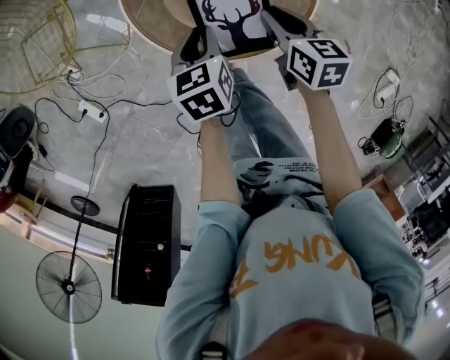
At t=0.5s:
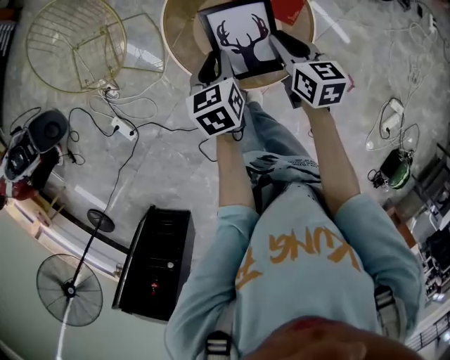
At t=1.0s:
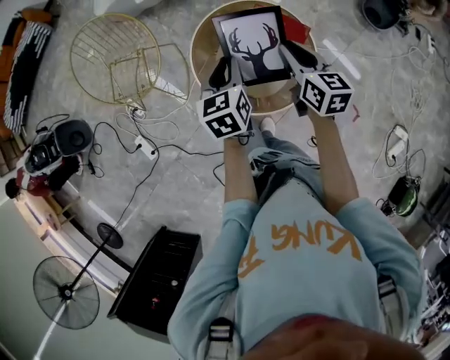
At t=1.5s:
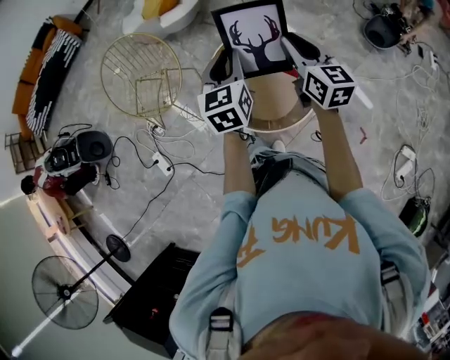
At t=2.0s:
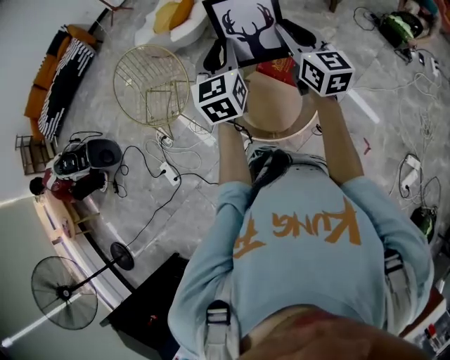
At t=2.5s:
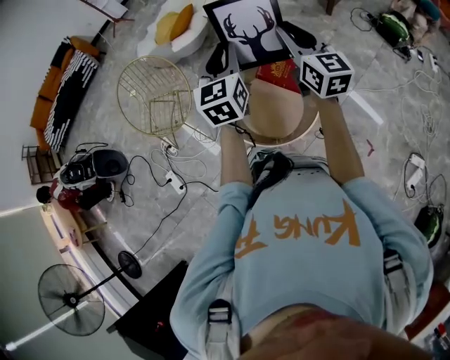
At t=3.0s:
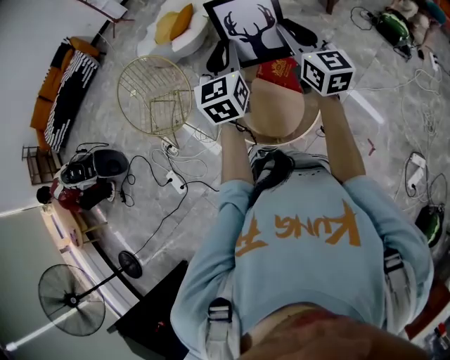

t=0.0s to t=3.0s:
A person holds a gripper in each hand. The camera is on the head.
t=0.0s to t=1.5s: Both grippers travel together upward, some 40 cm. The left gripper points its fingers about 30 degrees further upward; the right gripper tilts its fingers about 30 degrees upward.
t=1.5s to t=3.0s: Both grippers move upward, roughly 10 cm.

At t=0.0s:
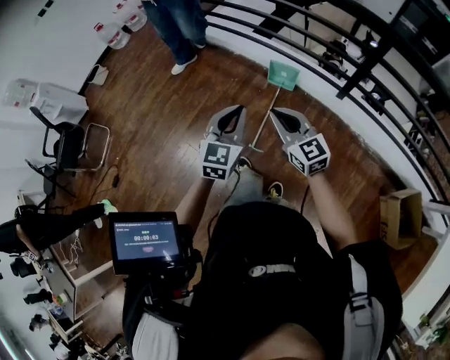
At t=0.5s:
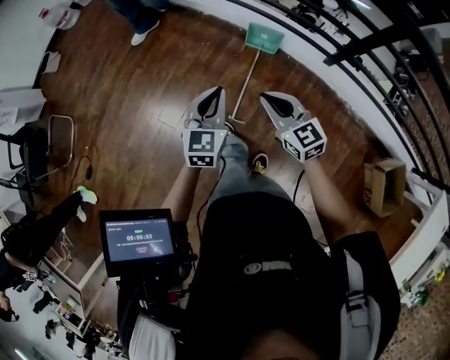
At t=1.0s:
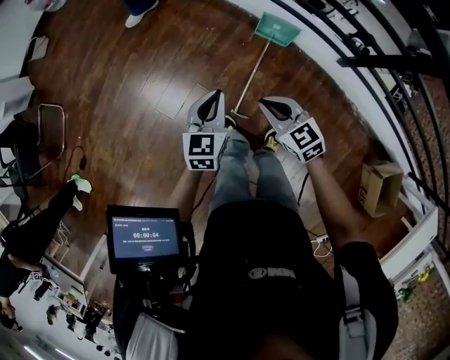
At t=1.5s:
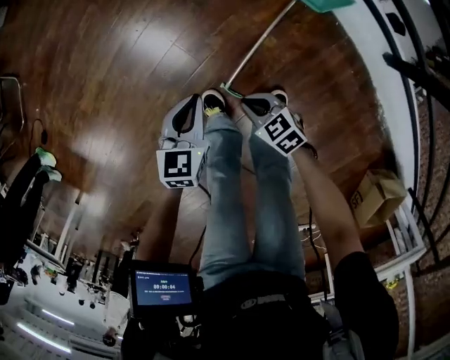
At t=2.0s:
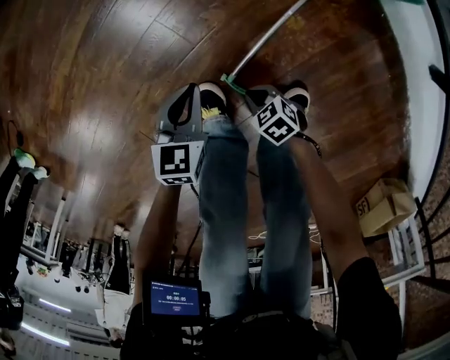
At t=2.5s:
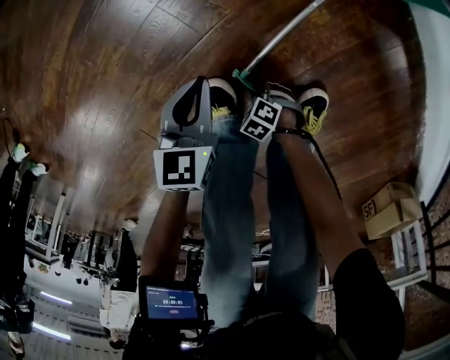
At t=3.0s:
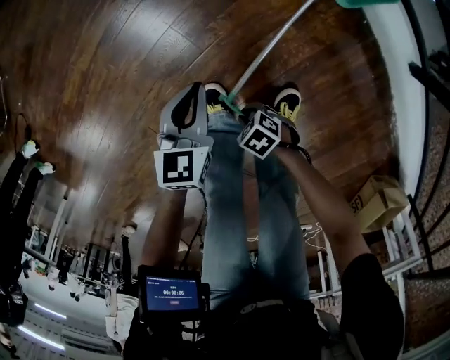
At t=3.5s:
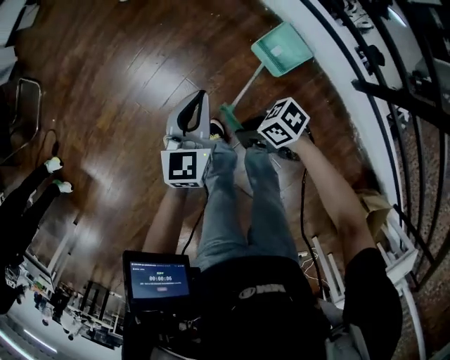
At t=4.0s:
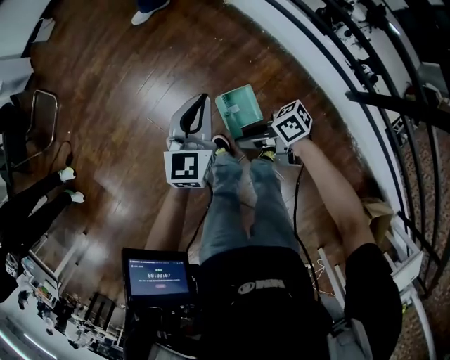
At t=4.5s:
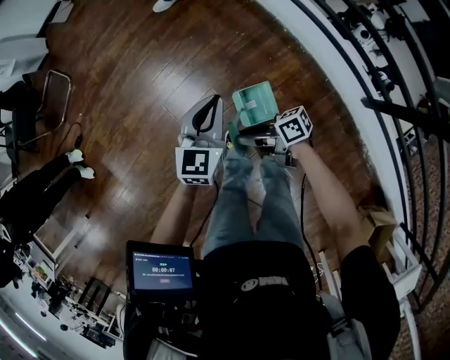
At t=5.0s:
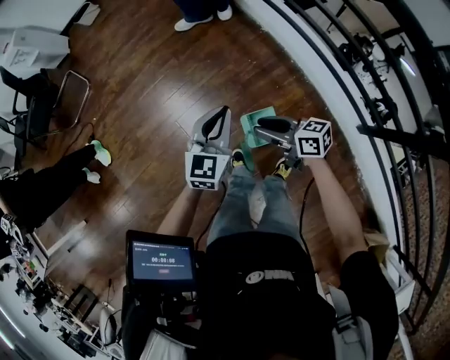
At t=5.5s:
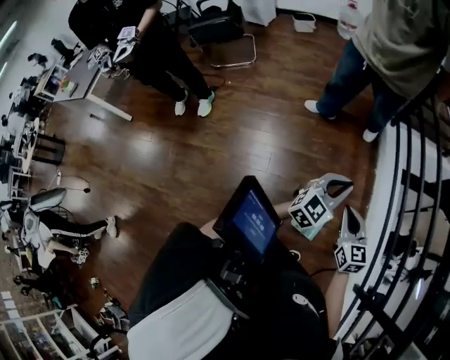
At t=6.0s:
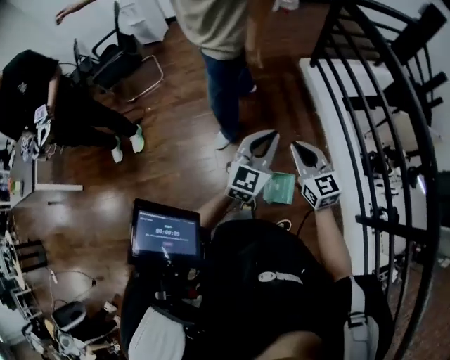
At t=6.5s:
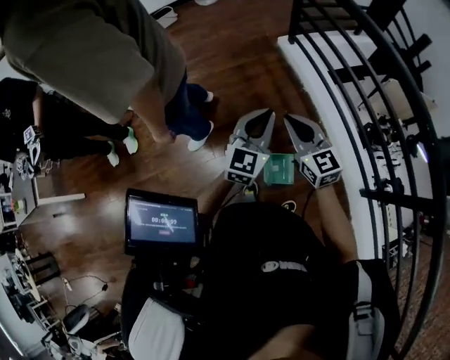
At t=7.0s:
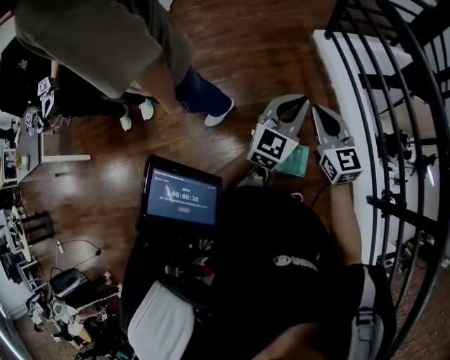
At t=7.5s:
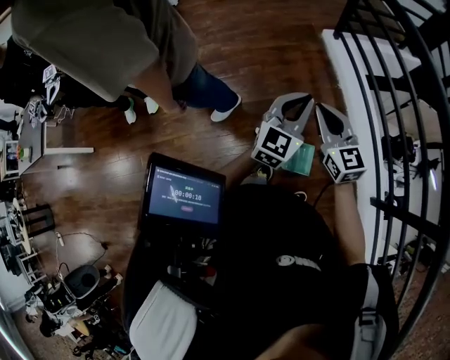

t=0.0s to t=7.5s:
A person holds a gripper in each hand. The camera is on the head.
t=0.0s to t=2.0s: Both grippers move downward, roughly 70 cm. The right gripper tips its fingers downward by about 50 degrees. Meanwhile the left gripper points its fingers approximately 30 degrees further downward.
t=2.0s to t=4.0s: Both grippers travel together upward, approximately 50 cm. The right gripper angles its fingers upward, by some 50 degrees. The left gripper changes its angle by some 30 degrees.
t=4.0s to t=5.5s: The right gripper travels upward and forward by some 20 cm, and rolls counterclockwise, seen from behind, by about 60 degrees; the left gripper moves upward, approximately 15 cm.
t=5.5s to t=7.5s: The left gripper goes left and right, about 10 cm each way, reversing 2 times; the right gripper swings left and right, some 10 cm each way, with 2 reversals.

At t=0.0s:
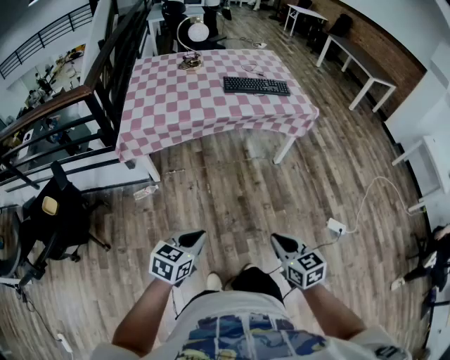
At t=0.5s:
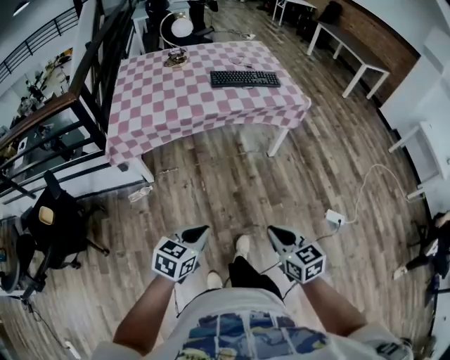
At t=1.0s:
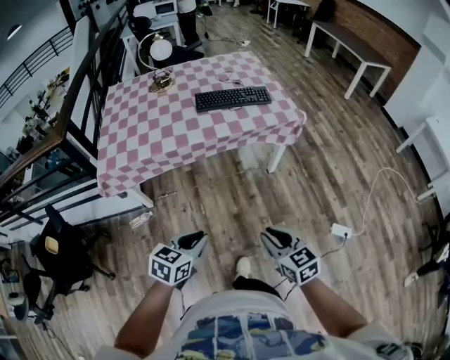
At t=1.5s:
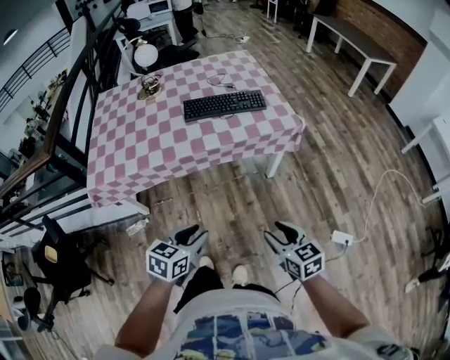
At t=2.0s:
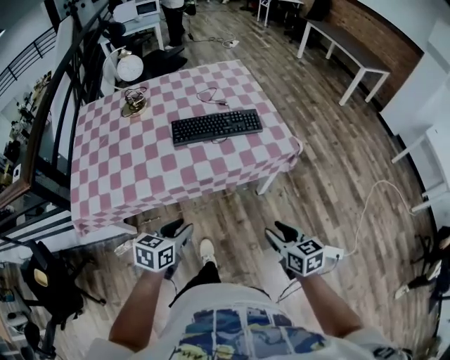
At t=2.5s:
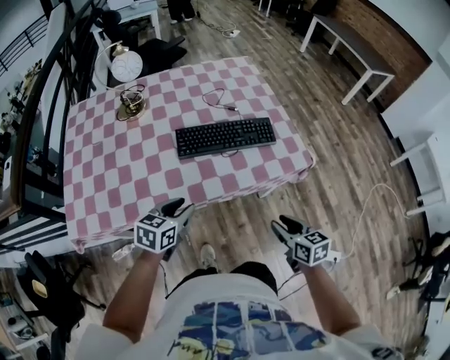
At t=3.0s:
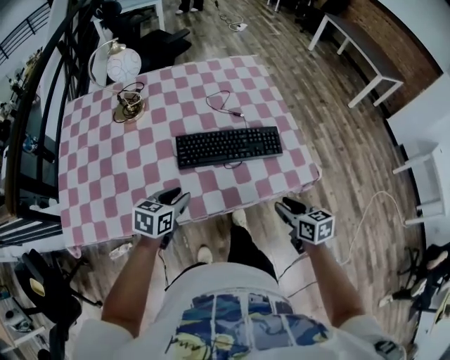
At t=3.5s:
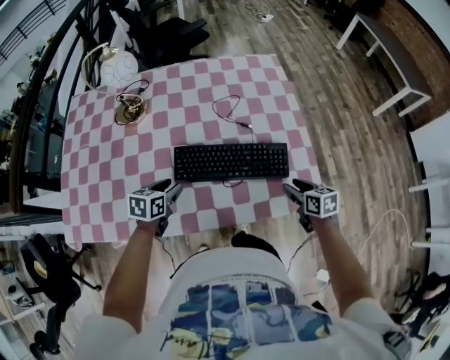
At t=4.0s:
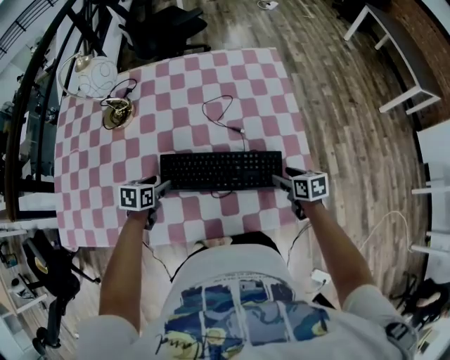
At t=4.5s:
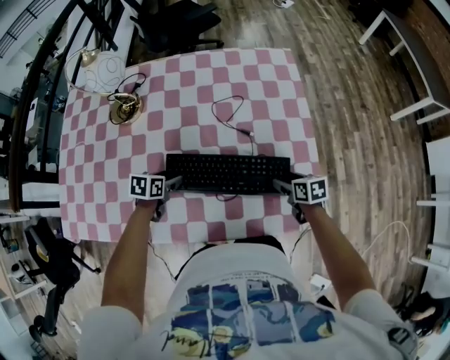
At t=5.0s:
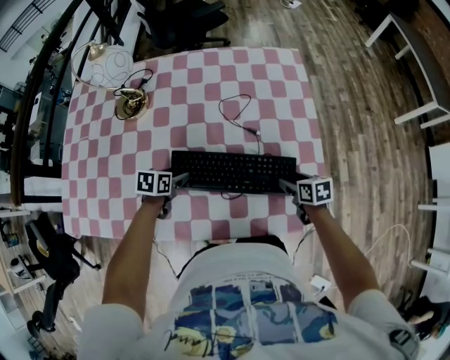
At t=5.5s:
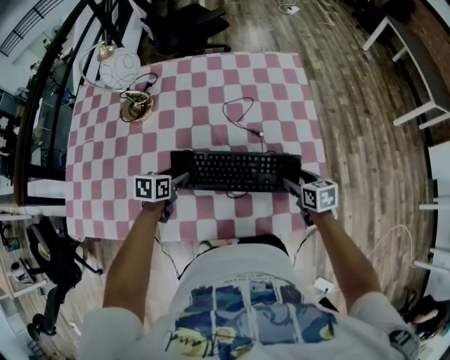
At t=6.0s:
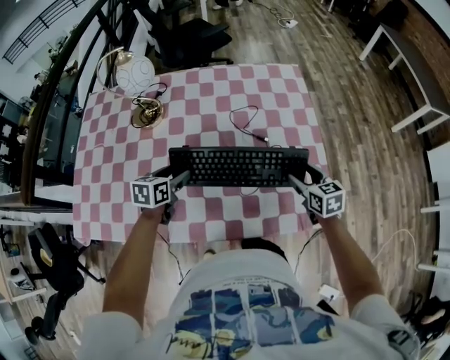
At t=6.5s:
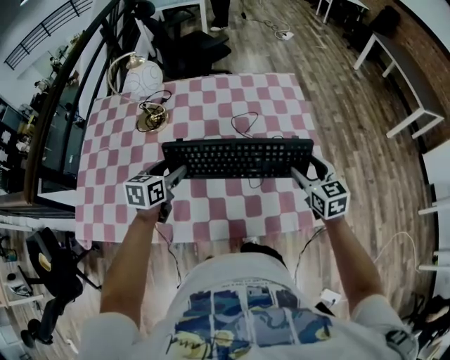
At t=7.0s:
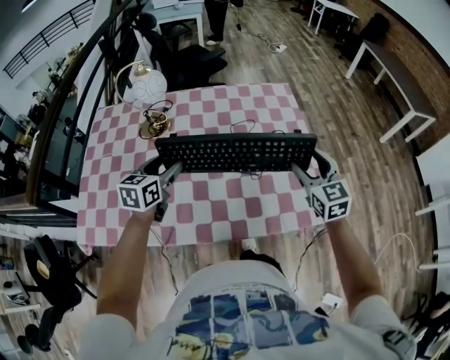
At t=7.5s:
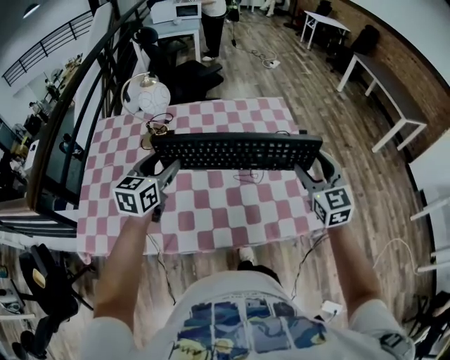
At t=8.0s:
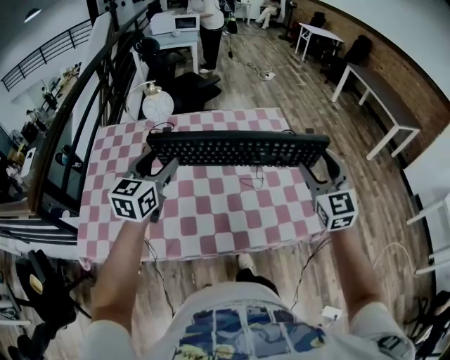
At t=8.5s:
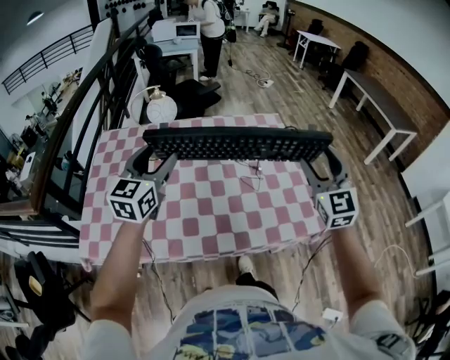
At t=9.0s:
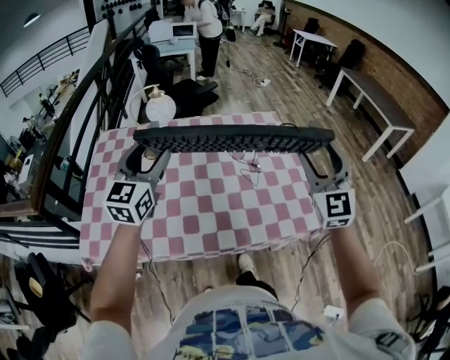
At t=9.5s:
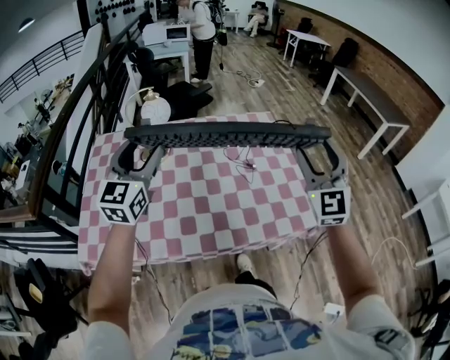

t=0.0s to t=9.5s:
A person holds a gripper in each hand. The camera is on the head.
t=0.0s to t=2.0s: Both grippers are carried forward, roughly 50 cm. The right gripper opens its fingers, while the left gripper opens up.
t=2.0s to t=4.0s: The pair of grippers is taken forward, approximately 50 cm. The left gripper swivels some 30 degrees, and opens up. Meanwhile the right gripper changes its angle by about 20 degrees, and opens its fingers.
t=4.0s to t=5.5s: The grippers move only a little.
t=5.5s to t=7.5s: The grippers both shift upward by about 30 cm. The left gripper tips its fingers upward by some 30 degrees. Meanwhile the right gripper points its fingers approximately 40 degrees further upward.
t=7.5s to t=9.5s: The grippers both shift upward and backward by roughly 15 cm. The left gripper changes its angle by about 30 degrees, while the right gripper turns by approximately 30 degrees.

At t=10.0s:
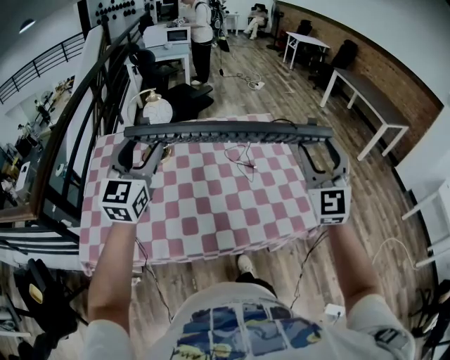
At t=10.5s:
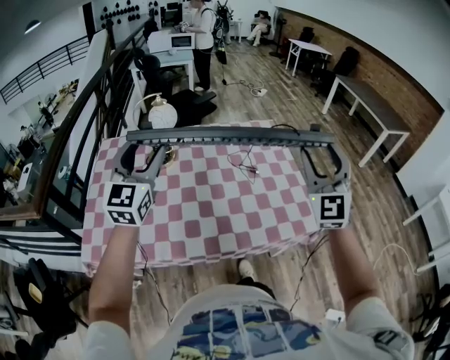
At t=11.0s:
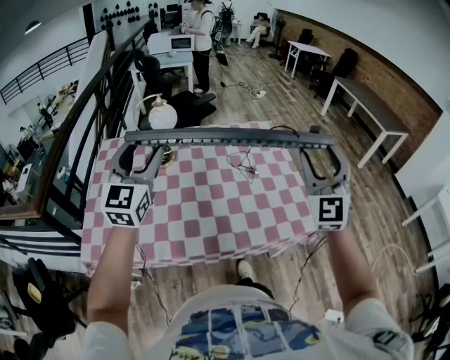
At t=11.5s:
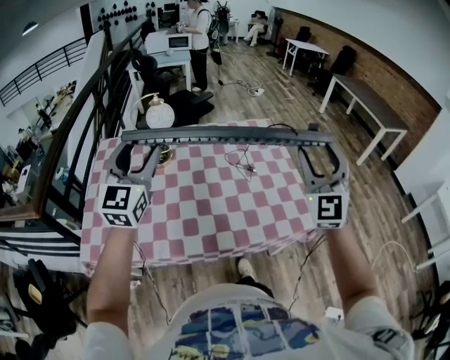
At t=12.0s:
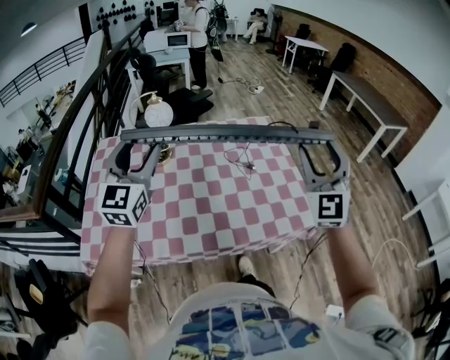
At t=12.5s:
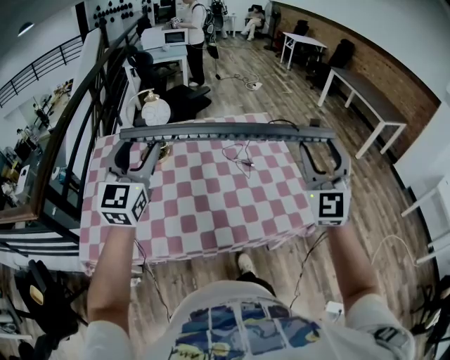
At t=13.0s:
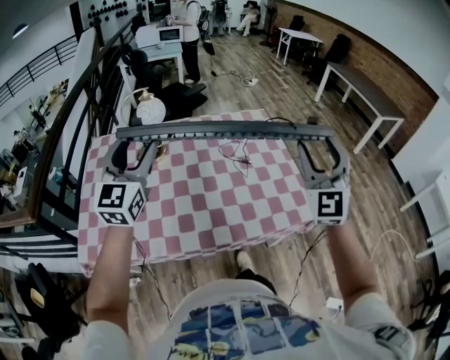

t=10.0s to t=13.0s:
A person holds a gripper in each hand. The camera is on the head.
t=10.0s to t=13.0s: The grippers stay close to where they were, moving slightly.

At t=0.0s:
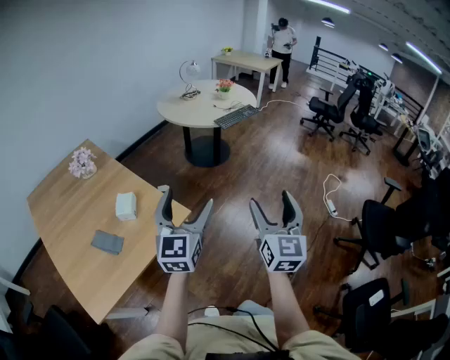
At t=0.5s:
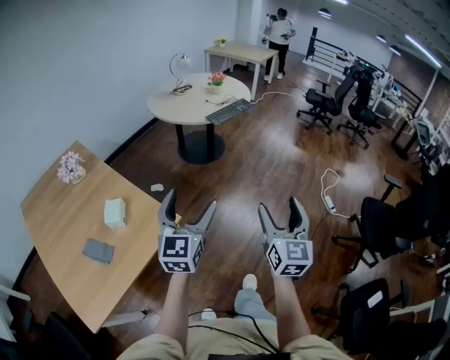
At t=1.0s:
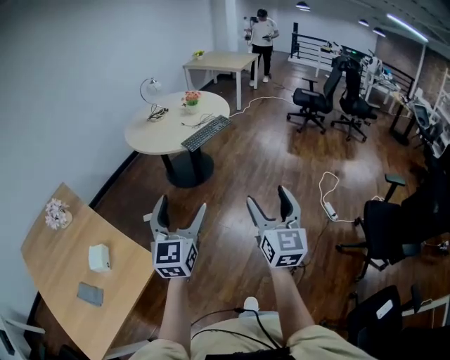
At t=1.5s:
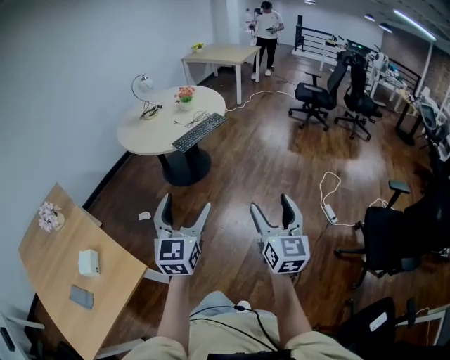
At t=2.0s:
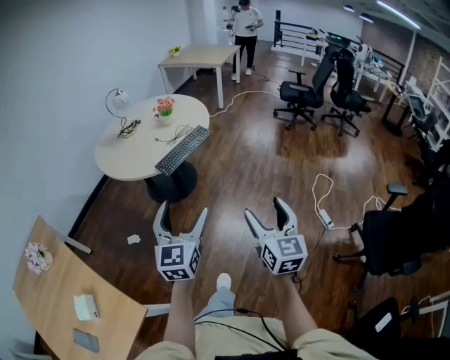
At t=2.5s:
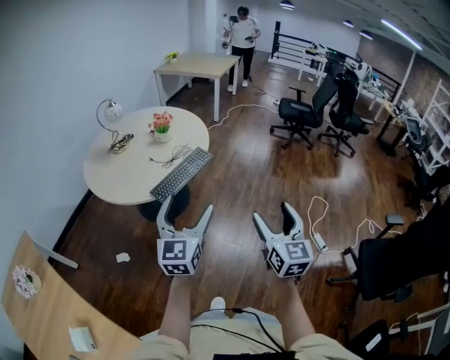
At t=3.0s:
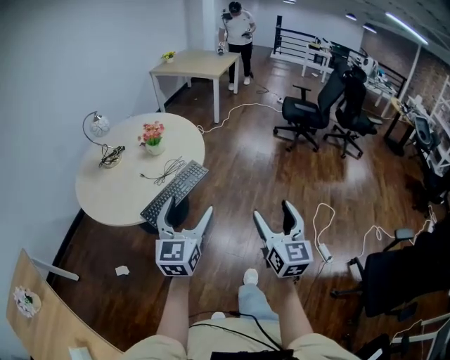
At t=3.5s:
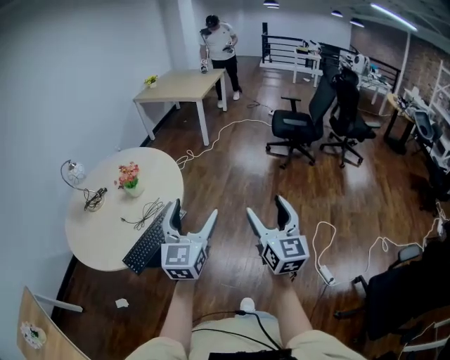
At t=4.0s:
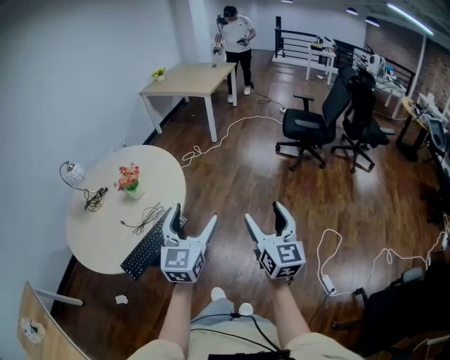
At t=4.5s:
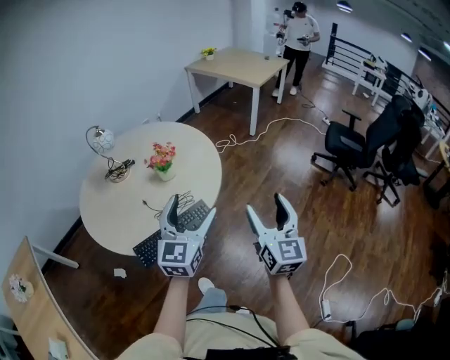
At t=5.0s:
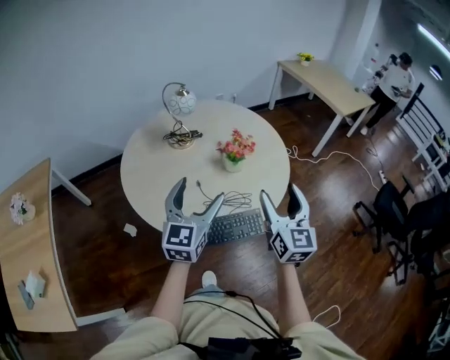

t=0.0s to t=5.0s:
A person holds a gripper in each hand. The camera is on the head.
t=0.0s to t=2.5s: Both grippers are carried forward, roughly 70 cm.
t=2.5s to t=5.0s: The pair of grippers is taken approximately 60 cm. The left gripper turns by about 30 degrees; the right gripper swivels some 40 degrees.
